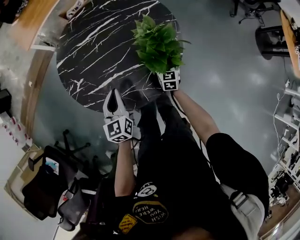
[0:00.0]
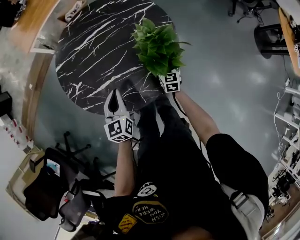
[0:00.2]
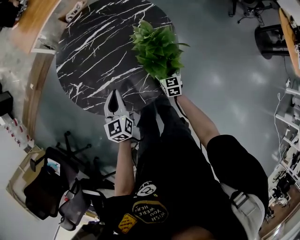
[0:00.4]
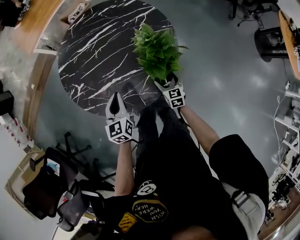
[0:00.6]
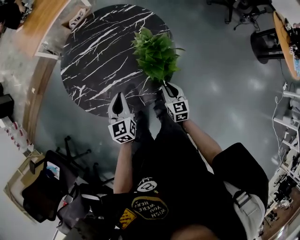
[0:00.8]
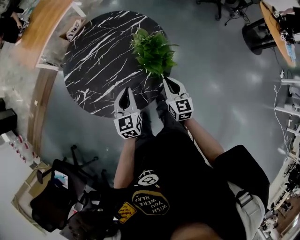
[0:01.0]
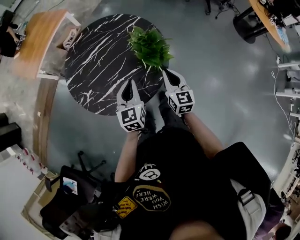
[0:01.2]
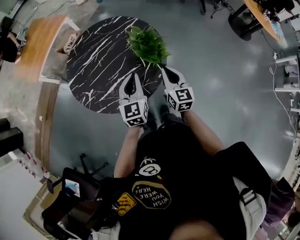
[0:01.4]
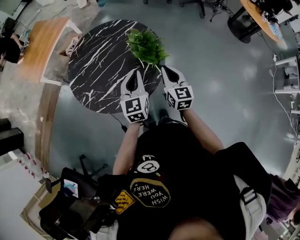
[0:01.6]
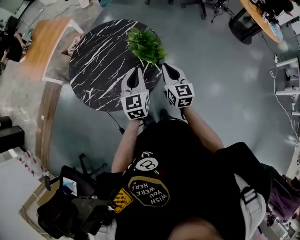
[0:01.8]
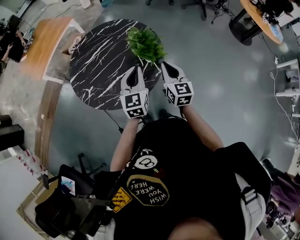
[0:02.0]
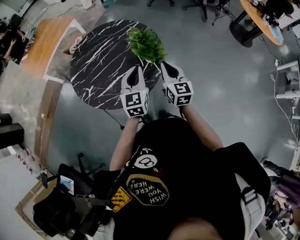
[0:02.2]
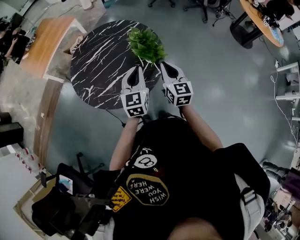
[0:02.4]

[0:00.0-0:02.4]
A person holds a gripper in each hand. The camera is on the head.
0:00.0 to 0:01.2: The right gripper travels upward and backward by roughly 30 cm, and closes, while the left gripper goes about 15 cm upward and to the right, and changes its angle by roughly 20 degrees.
0:01.2 to 0:02.4: The right gripper goes roughly 10 cm upward and backward. Meanwhile the left gripper shifts about 10 cm upward and to the right.

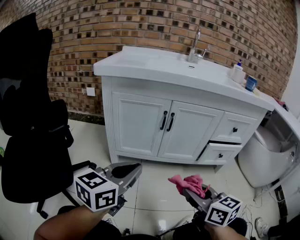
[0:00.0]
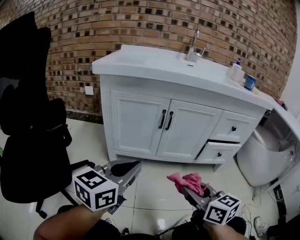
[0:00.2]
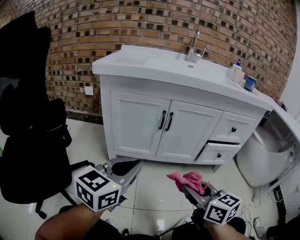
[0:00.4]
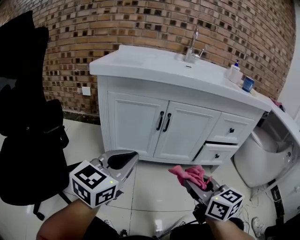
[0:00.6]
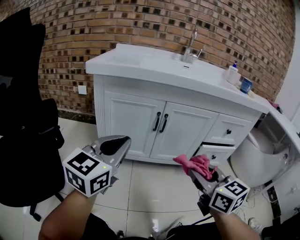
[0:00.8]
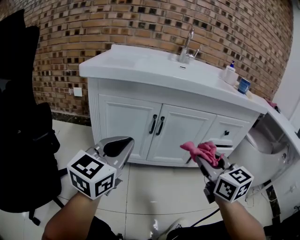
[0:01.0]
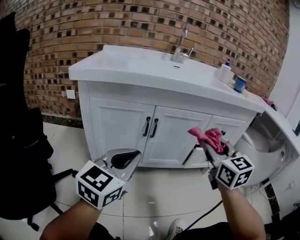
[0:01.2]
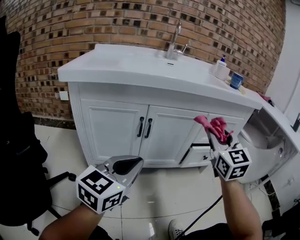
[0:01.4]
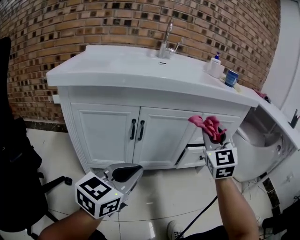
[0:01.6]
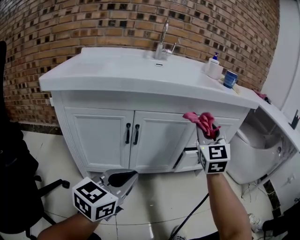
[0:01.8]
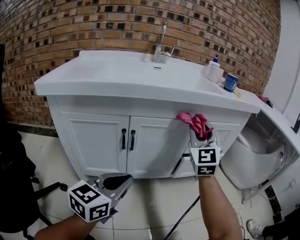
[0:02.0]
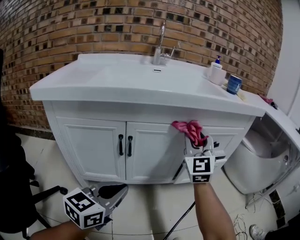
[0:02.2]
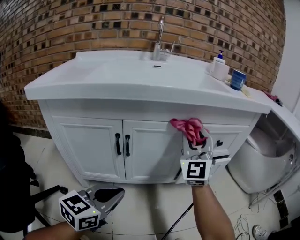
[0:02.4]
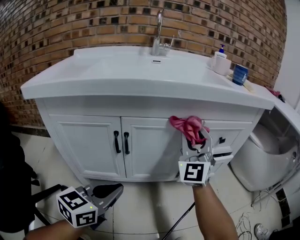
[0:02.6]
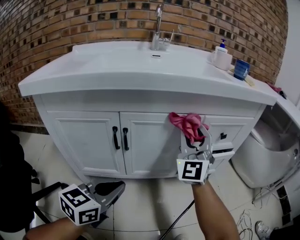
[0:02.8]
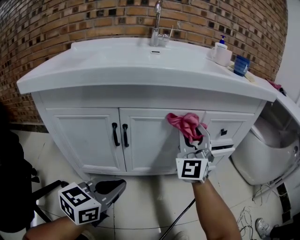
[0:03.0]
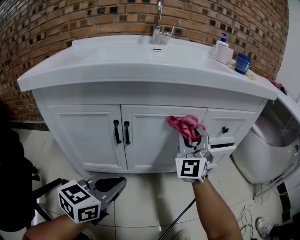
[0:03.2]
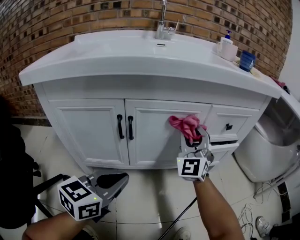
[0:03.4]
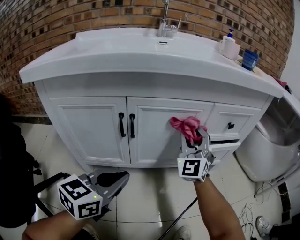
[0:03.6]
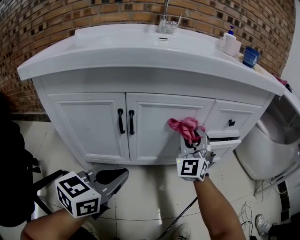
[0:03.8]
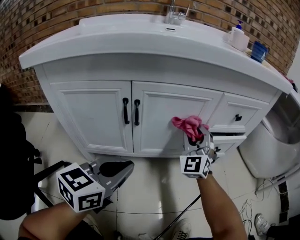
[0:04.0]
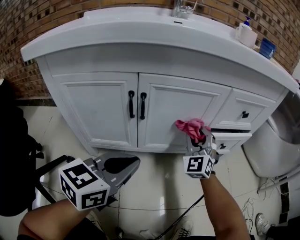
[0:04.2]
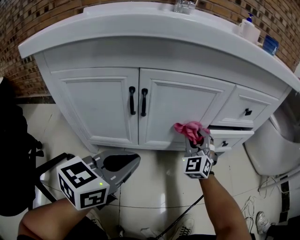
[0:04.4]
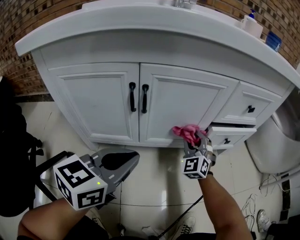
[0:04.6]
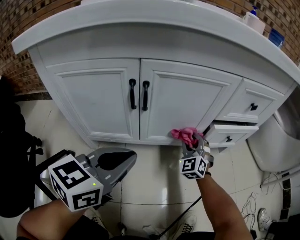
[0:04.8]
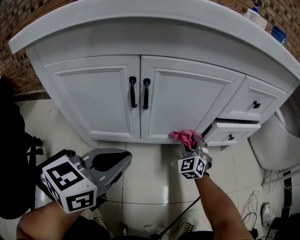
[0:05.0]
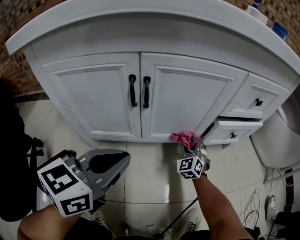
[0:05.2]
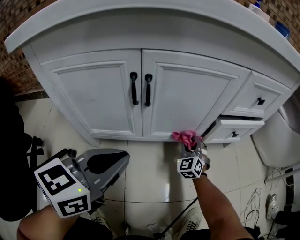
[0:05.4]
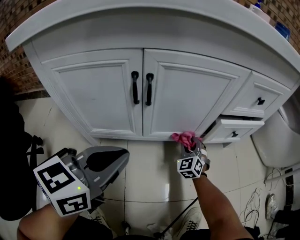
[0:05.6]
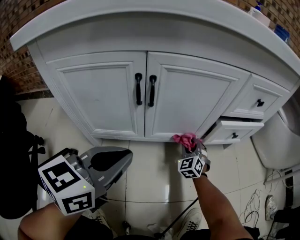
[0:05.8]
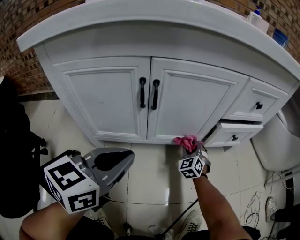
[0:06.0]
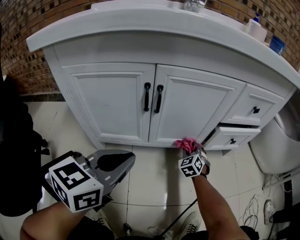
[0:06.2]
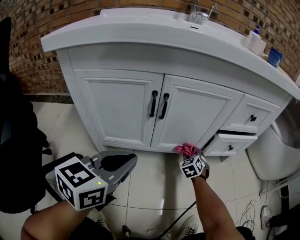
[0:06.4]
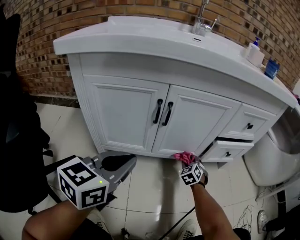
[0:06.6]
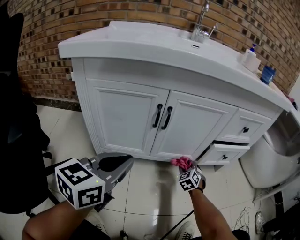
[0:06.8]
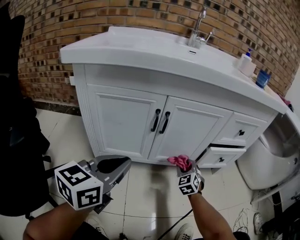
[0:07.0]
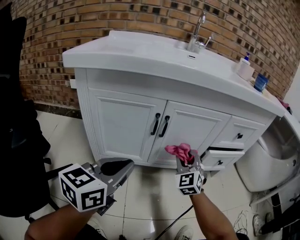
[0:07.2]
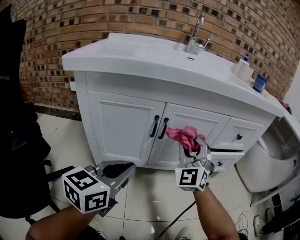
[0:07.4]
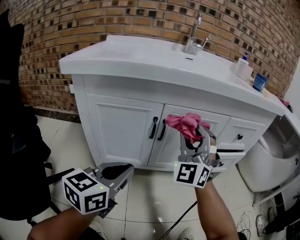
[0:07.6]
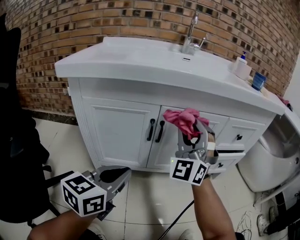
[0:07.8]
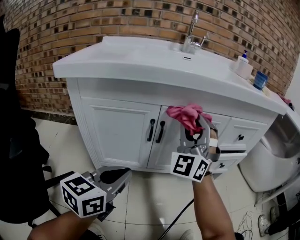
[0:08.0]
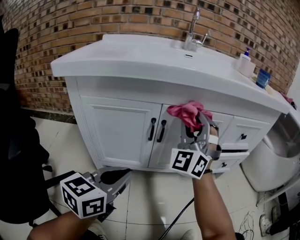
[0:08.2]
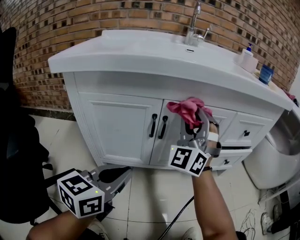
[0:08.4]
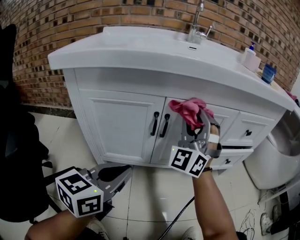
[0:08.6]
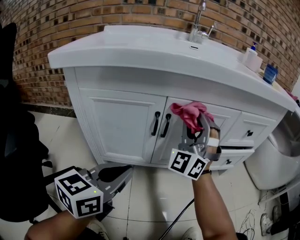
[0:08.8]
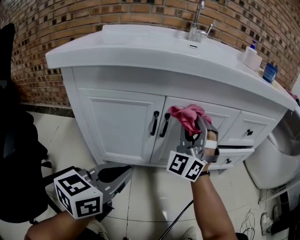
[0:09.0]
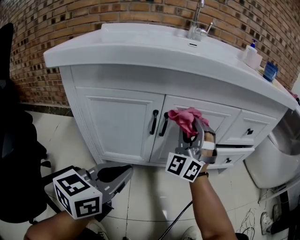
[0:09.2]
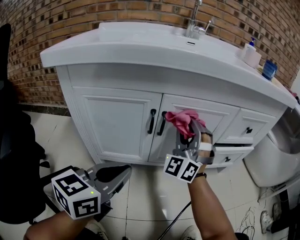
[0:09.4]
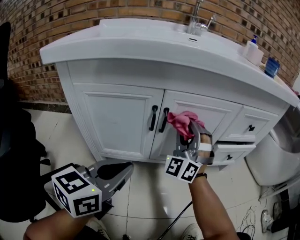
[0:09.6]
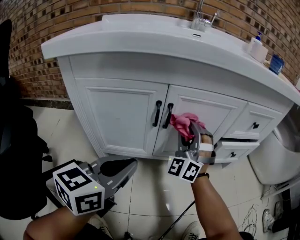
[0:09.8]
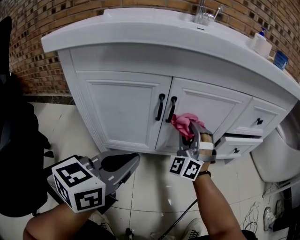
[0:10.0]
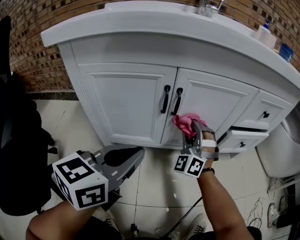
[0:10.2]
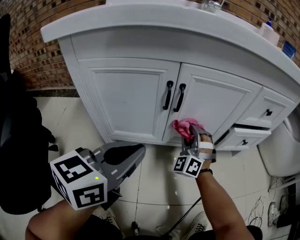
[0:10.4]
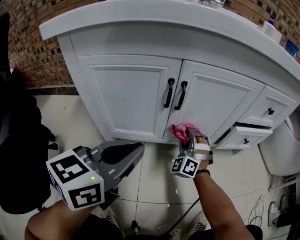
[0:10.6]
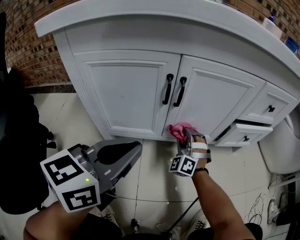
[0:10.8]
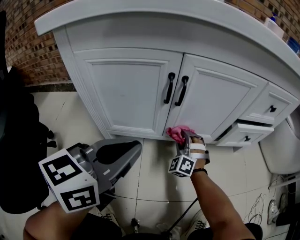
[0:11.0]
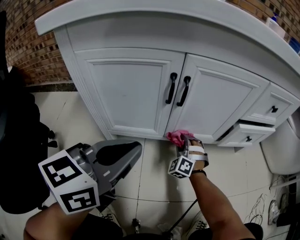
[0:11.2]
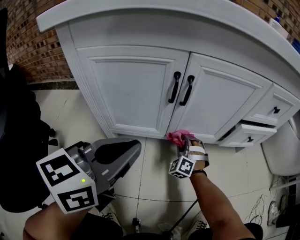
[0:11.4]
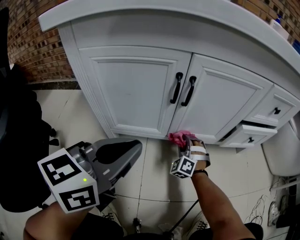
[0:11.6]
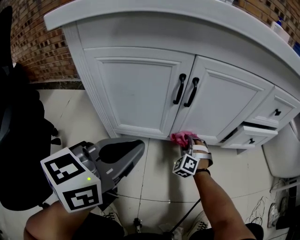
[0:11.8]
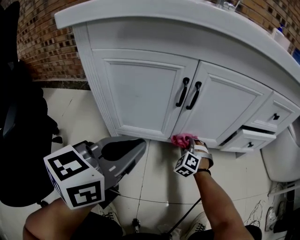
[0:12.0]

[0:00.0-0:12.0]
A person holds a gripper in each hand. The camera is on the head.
0:00.0 to 0:01.6: The left gripper heads forward and to the right, covering some 15 cm. Meanwhile the right gripper moves forward, upward and to the right, some 30 cm, and swivels approximately 60 degrees.
0:01.6 to 0:03.0: The right gripper heads forward, downward and to the left, covering roughly 10 cm. Meanwhile the left gripper heads downward and forward, covering roughly 10 cm.
0:03.0 to 0:04.4: The right gripper travels downward by approximately 20 cm, and swivels about 20 degrees.
0:04.4 to 0:06.0: The right gripper moves downward, some 20 cm, and rotates approximately 20 degrees.
0:06.0 to 0:07.6: The right gripper is displaced upward by approximately 40 cm, and points its fingers approximately 40 degrees further upward; the left gripper changes place by some 5 cm.
0:07.6 to 0:09.0: The right gripper shifts about 5 cm forward.
0:09.0 to 0:10.4: The right gripper moves downward, about 20 cm, and swivels roughly 20 degrees.
0:10.4 to 0:12.0: The right gripper goes some 15 cm downward, and tips its fingers downward by about 30 degrees.

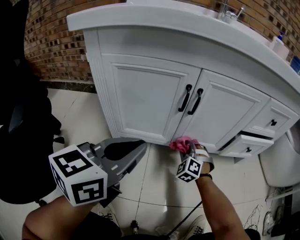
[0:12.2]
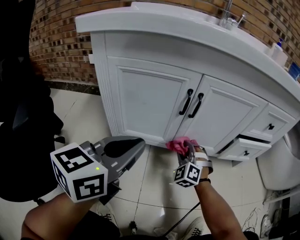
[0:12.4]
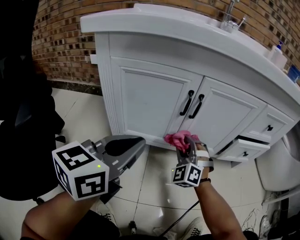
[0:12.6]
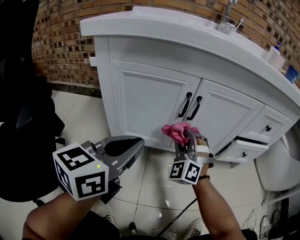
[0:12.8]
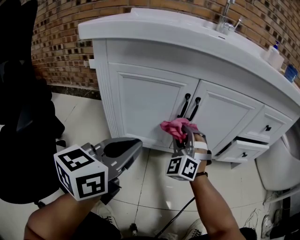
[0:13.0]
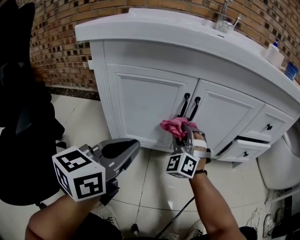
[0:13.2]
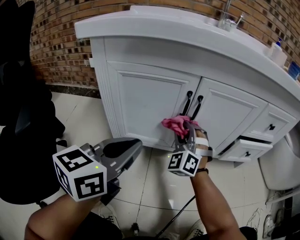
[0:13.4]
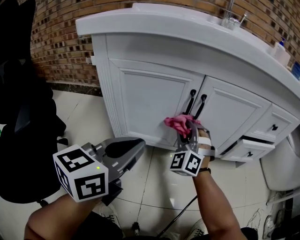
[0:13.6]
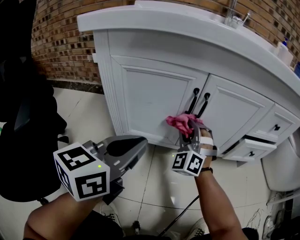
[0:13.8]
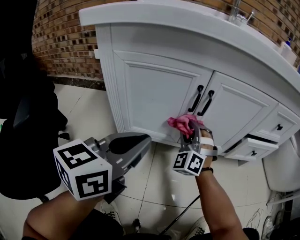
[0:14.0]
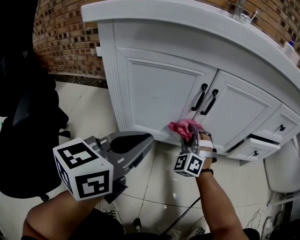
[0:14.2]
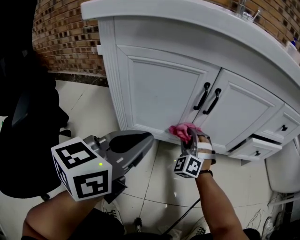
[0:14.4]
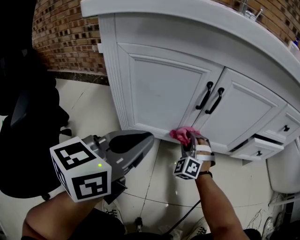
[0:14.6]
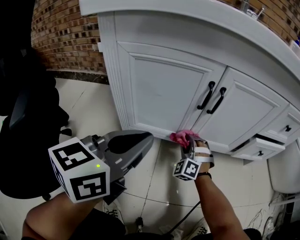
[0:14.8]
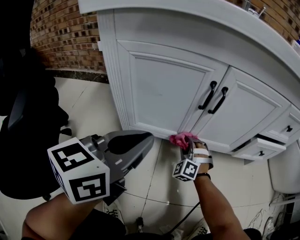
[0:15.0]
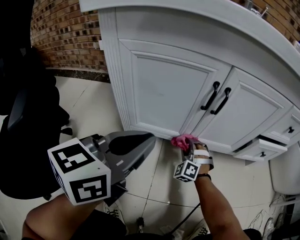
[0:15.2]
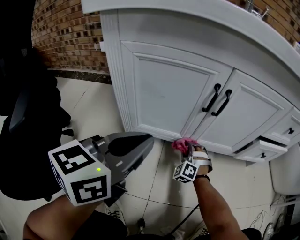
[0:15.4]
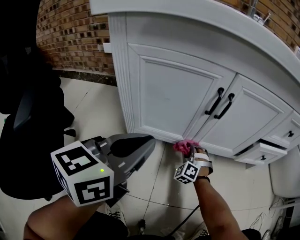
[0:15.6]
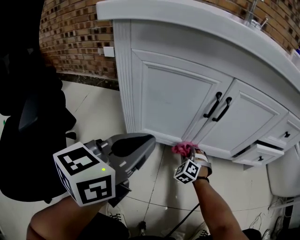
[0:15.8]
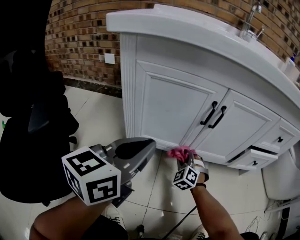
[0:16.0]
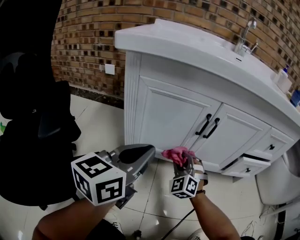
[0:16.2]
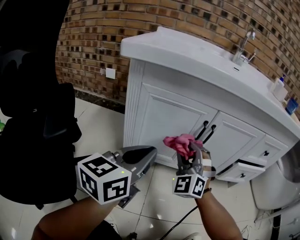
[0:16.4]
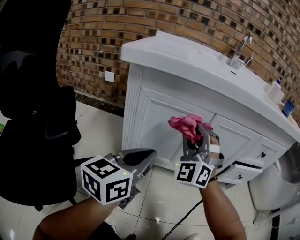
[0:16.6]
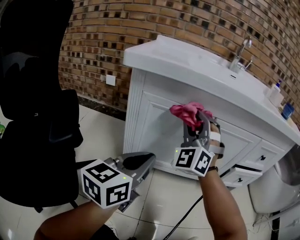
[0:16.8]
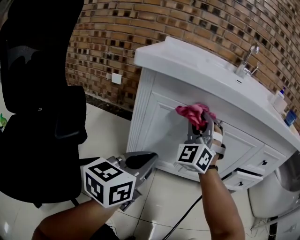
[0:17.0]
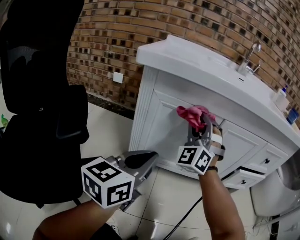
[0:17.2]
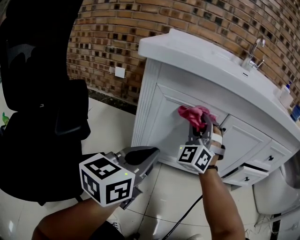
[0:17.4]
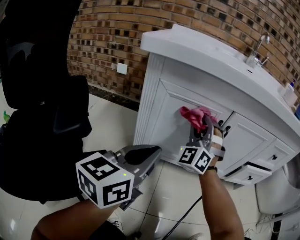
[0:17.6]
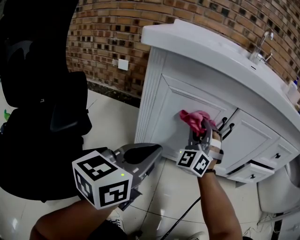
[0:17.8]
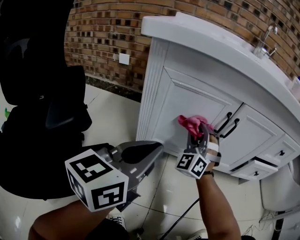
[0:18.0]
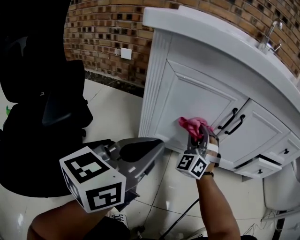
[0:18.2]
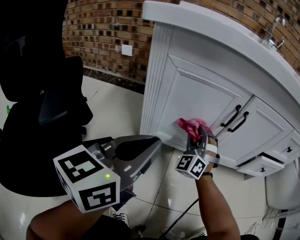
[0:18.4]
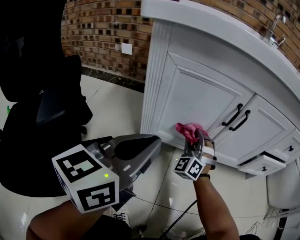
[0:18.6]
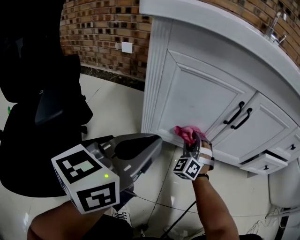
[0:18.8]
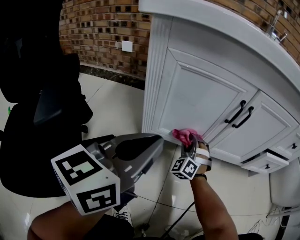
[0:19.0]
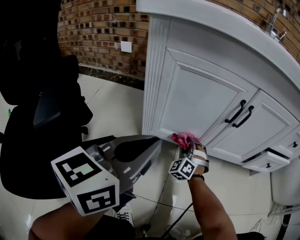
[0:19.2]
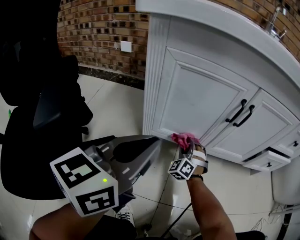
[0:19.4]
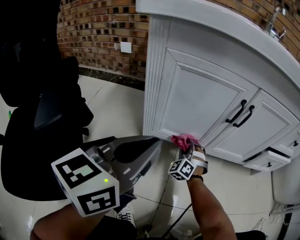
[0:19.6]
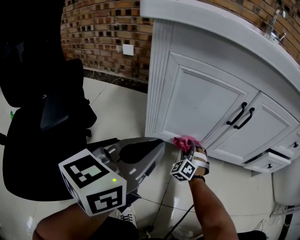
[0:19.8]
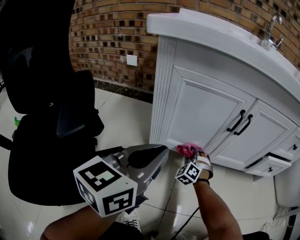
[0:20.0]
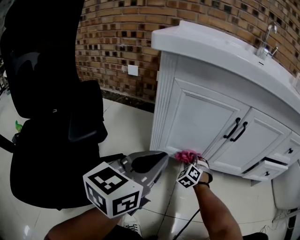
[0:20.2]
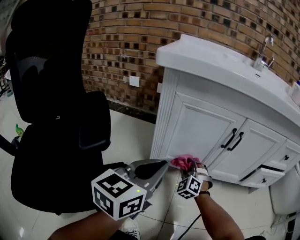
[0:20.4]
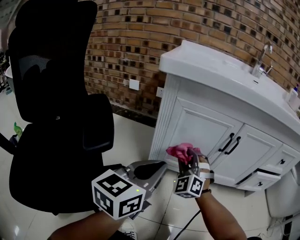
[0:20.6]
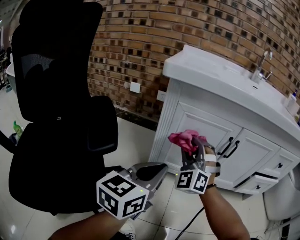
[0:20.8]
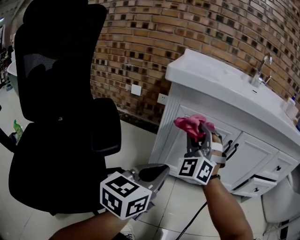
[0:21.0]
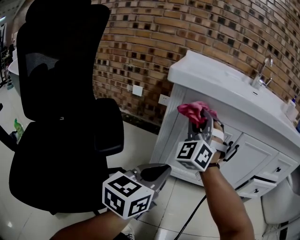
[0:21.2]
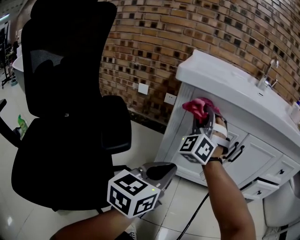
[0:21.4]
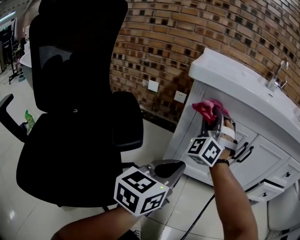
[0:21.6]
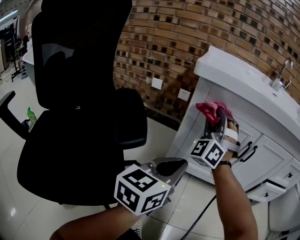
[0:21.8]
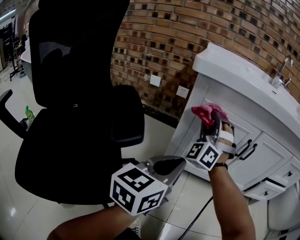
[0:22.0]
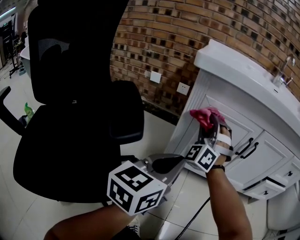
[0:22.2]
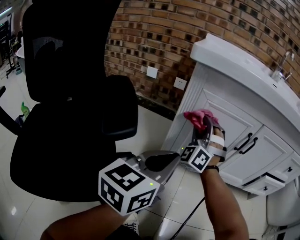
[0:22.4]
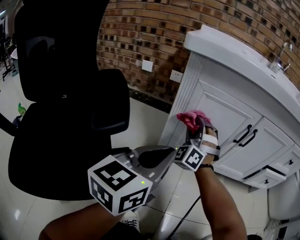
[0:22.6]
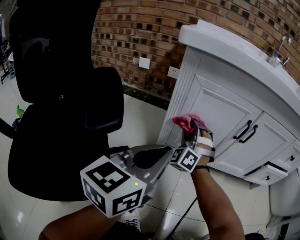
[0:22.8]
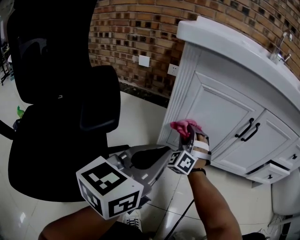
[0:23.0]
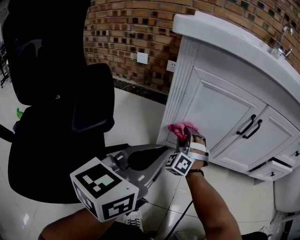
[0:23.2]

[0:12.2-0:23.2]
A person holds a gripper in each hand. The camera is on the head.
0:12.2 to 0:13.8: The right gripper is displaced upward and to the left by about 20 cm, and changes its angle by some 30 degrees.
0:13.8 to 0:15.4: The right gripper travels downward by roughly 25 cm, and rotates about 30 degrees.
0:15.4 to 0:17.0: The left gripper moves roughly 5 cm; the right gripper goes about 40 cm upward, and angles its fingers upward, by approximately 40 degrees.
0:17.0 to 0:18.4: The right gripper shifts approximately 25 cm downward.
0:18.4 to 0:20.0: The right gripper shifts approximately 15 cm downward, and swivels some 30 degrees.
0:20.0 to 0:21.6: The right gripper is displaced upward by roughly 40 cm, and tips its fingers upward by about 40 degrees.
0:21.6 to 0:23.2: The right gripper heads downward, covering approximately 30 cm, and rotates roughly 20 degrees.
